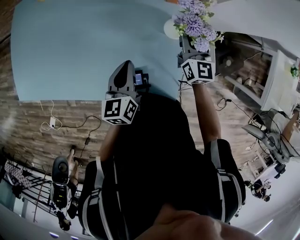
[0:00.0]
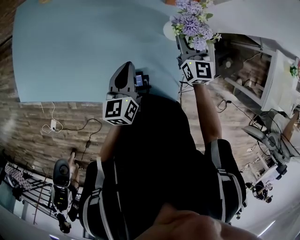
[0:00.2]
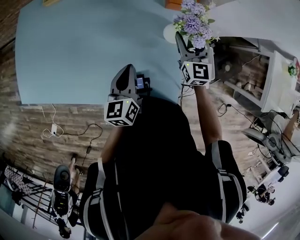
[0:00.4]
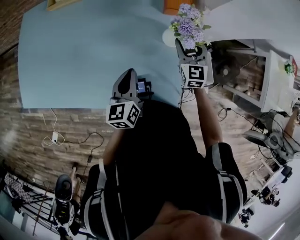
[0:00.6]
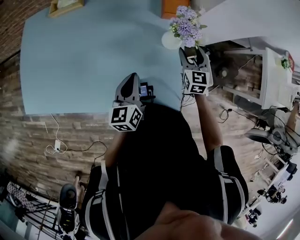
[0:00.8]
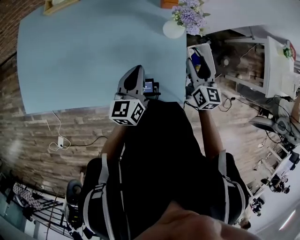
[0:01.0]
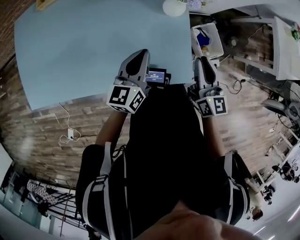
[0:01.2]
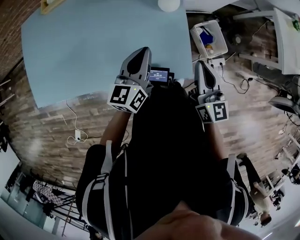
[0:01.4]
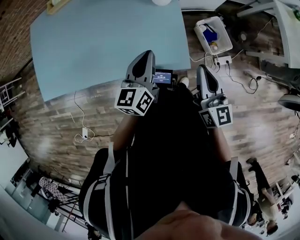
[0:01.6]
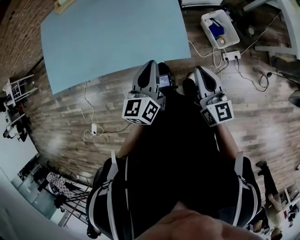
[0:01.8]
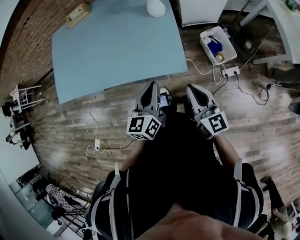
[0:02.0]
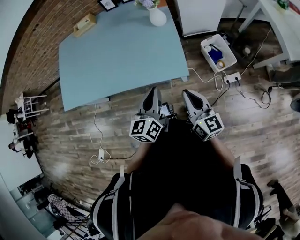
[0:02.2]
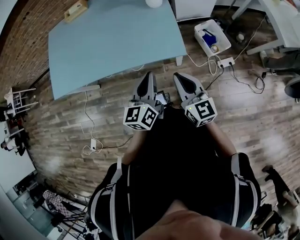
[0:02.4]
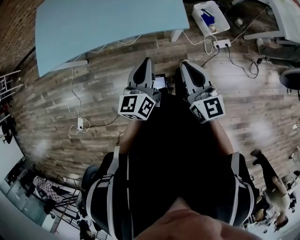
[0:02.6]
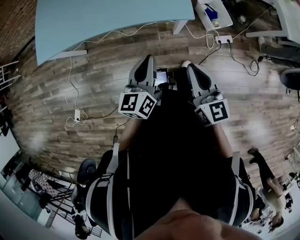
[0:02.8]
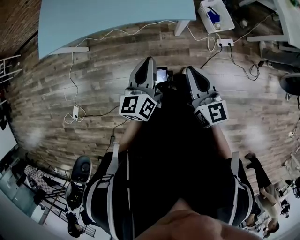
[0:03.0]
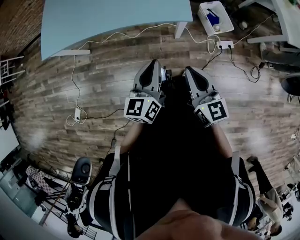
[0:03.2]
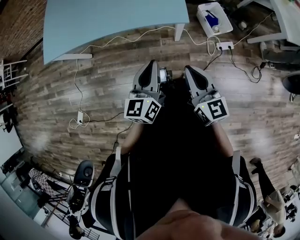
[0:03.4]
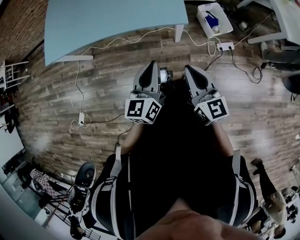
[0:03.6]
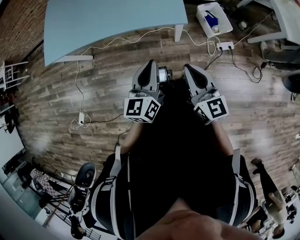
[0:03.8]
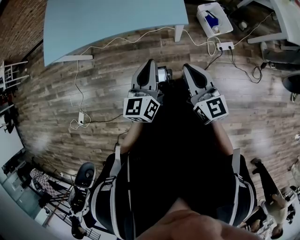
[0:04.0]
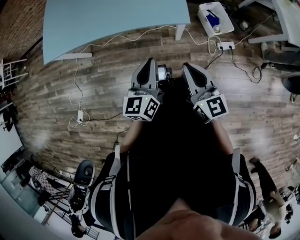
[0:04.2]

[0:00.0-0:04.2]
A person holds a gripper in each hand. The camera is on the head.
0.0 to 1.4 s: The left gripper heads backward, upward and to the right, covering about 15 cm, and rotates approximately 30 degrees, while the right gripper moves backward, some 30 cm, and closes.
1.4 to 2.8 s: The grippers both shift backward by about 40 cm.
2.8 to 4.2 s: The left gripper moves about 5 cm.

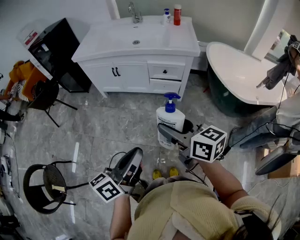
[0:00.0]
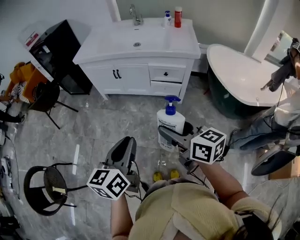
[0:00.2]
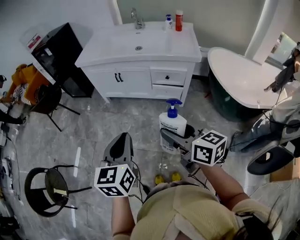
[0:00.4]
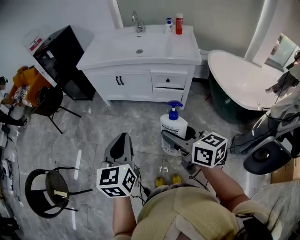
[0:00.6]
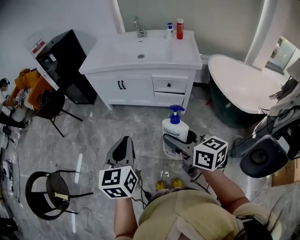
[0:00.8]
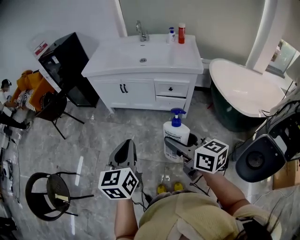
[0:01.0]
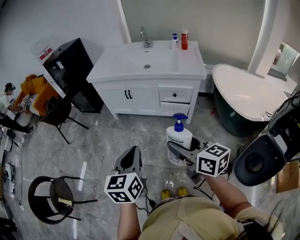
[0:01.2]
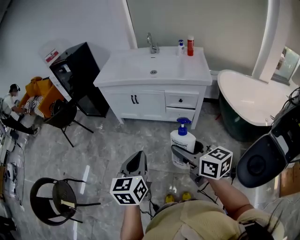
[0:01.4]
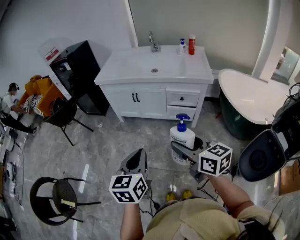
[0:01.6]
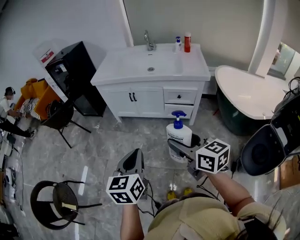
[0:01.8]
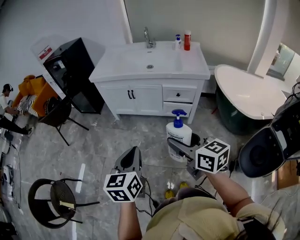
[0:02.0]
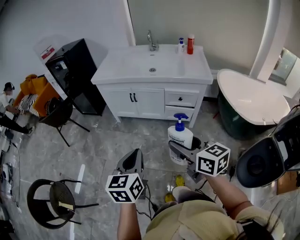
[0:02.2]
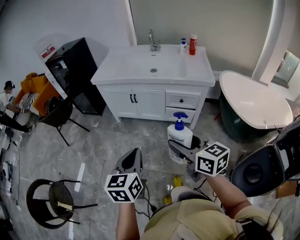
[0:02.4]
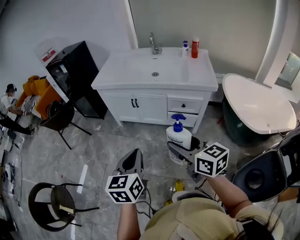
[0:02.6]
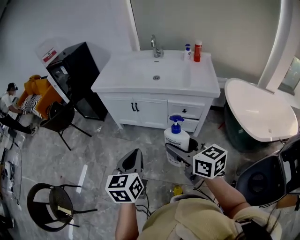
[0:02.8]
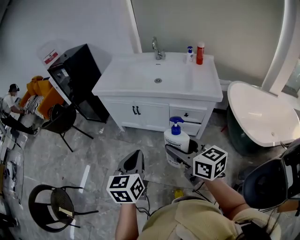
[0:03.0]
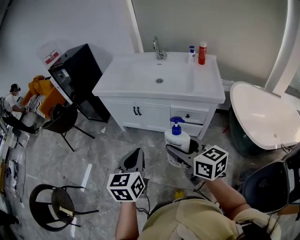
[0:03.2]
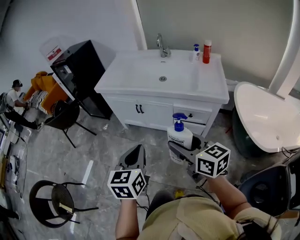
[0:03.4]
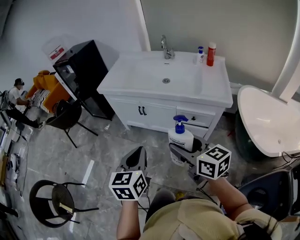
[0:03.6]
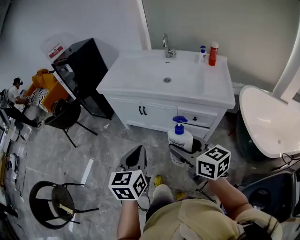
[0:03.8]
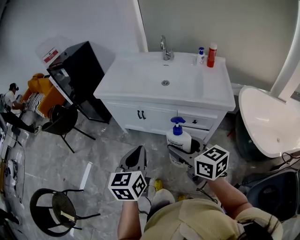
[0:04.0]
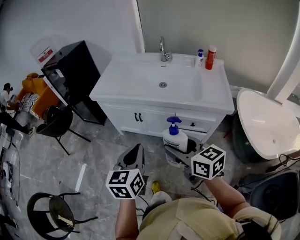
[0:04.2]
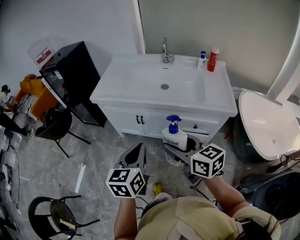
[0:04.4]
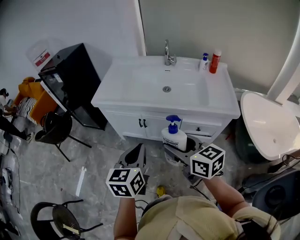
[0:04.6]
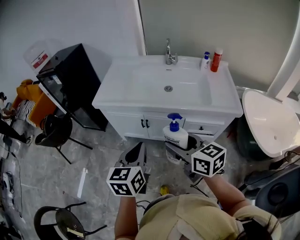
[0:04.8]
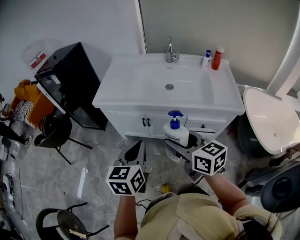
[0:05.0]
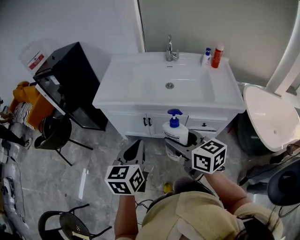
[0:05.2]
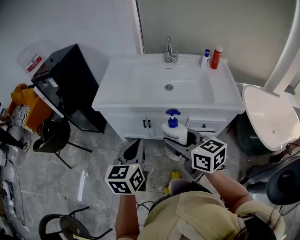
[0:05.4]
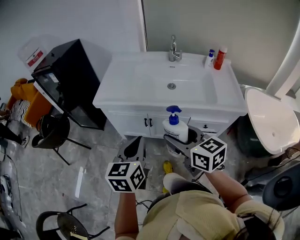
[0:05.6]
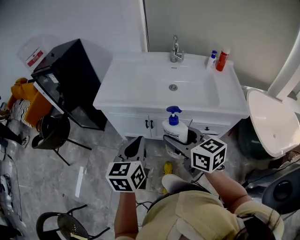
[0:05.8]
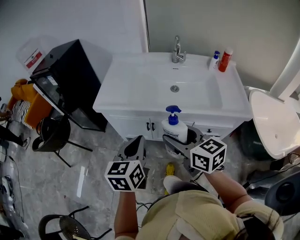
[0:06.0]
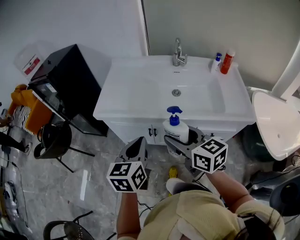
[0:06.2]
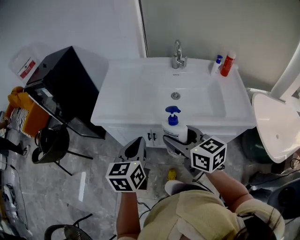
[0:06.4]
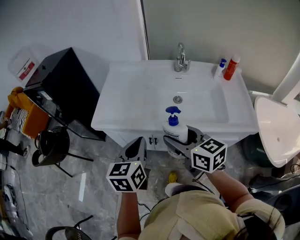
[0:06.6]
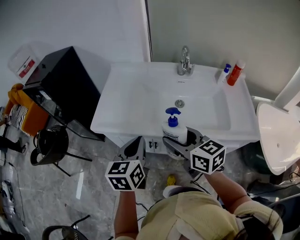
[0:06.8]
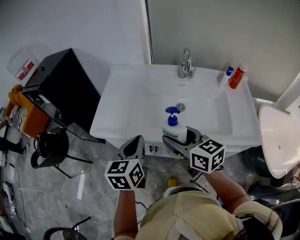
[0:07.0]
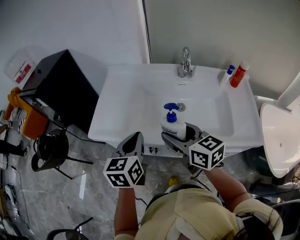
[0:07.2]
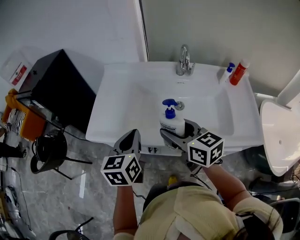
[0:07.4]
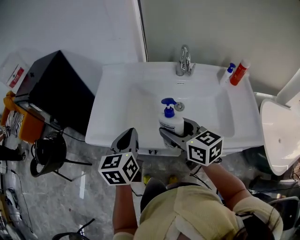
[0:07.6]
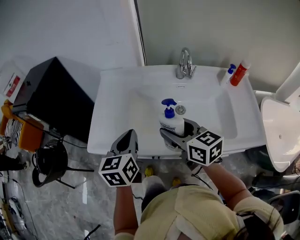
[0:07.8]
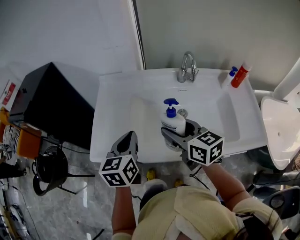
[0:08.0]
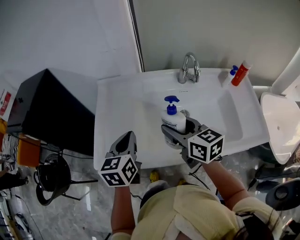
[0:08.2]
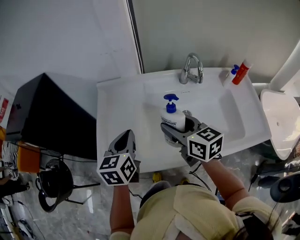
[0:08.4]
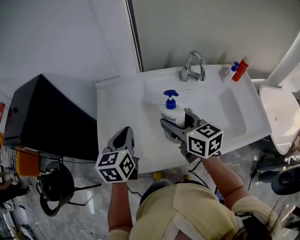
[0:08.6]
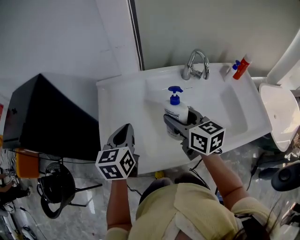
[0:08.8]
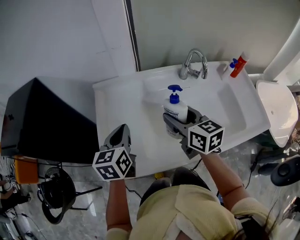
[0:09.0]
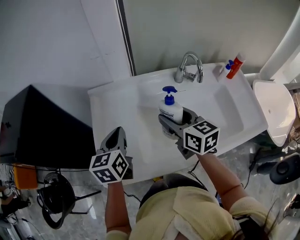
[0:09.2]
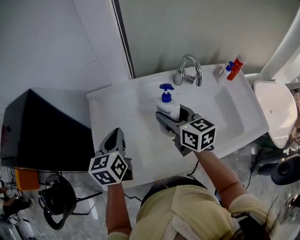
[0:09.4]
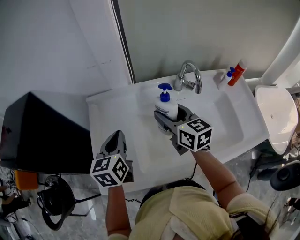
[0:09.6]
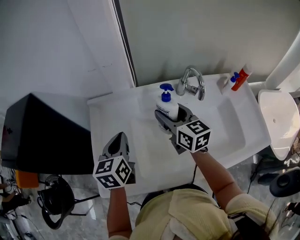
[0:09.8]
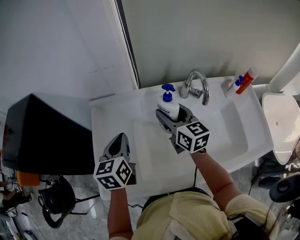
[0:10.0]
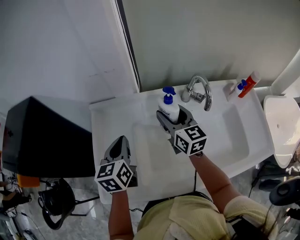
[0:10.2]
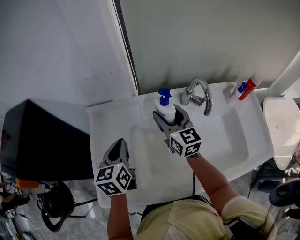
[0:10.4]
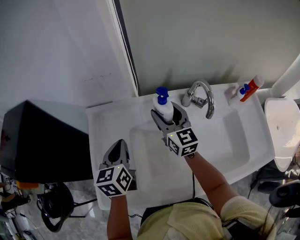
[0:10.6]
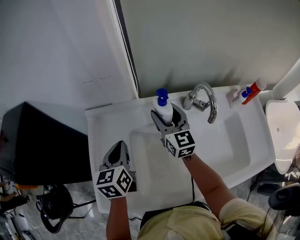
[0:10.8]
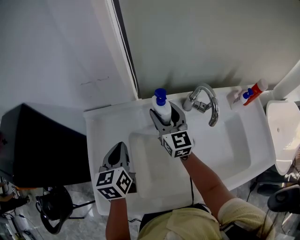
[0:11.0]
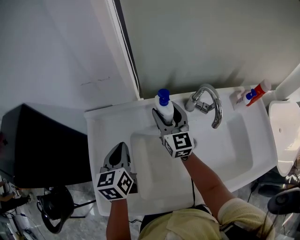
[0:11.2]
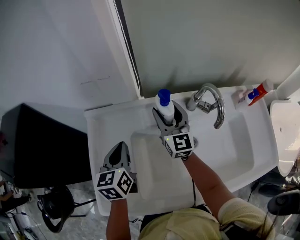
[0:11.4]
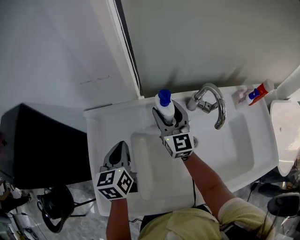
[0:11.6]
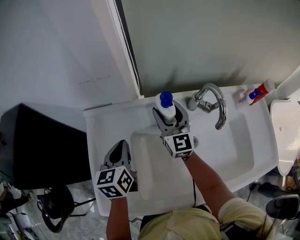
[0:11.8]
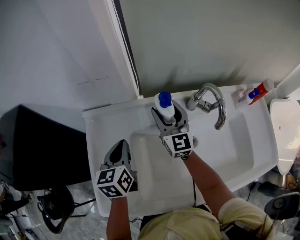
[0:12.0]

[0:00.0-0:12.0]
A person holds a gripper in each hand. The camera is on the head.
0.0 to 1.6 s: The left gripper travels forward and to the left by approximately 10 cm, and changes its angle by roughly 40 degrees, while the right gripper ends up approximately 5 cm from where it was.
1.6 to 3.0 s: The two grippers go approximately 15 cm forward.
3.0 to 4.4 s: Both grippers move forward, approximately 15 cm.
4.4 to 6.0 s: Both grippers move forward and to the left, some 15 cm.
6.0 to 7.6 s: The grippers both shift forward by roughly 25 cm.
7.6 to 9.0 s: The left gripper heads forward and to the left, covering some 20 cm, while the right gripper heads forward, covering about 15 cm, and rotates some 20 degrees.
9.0 to 10.4 s: The right gripper heads forward, covering roughly 15 cm, while the left gripper is displaced forward by about 10 cm.
10.4 to 12.0 s: The left gripper shifts by some 5 cm. Meanwhile the right gripper is displaced forward by about 5 cm.

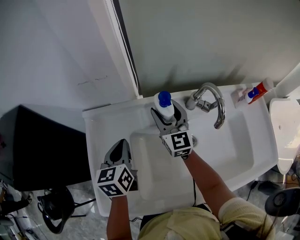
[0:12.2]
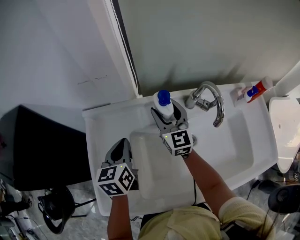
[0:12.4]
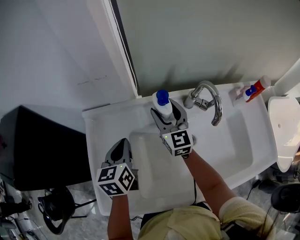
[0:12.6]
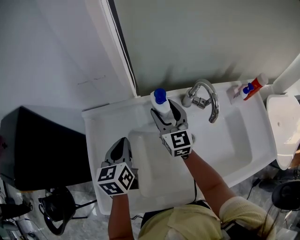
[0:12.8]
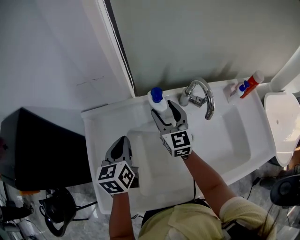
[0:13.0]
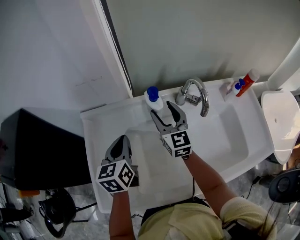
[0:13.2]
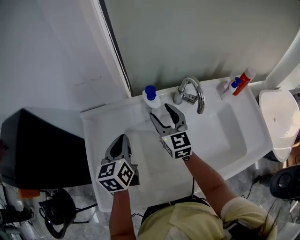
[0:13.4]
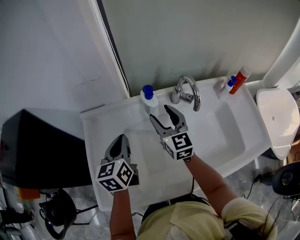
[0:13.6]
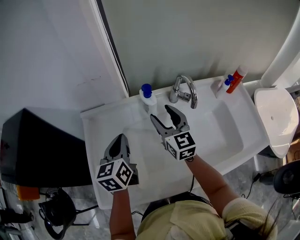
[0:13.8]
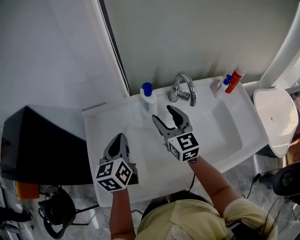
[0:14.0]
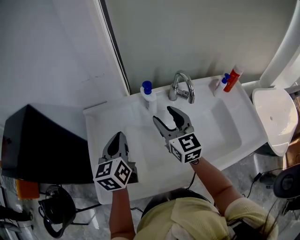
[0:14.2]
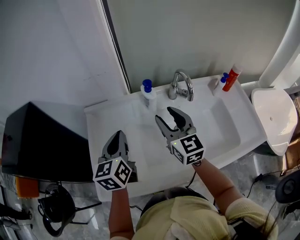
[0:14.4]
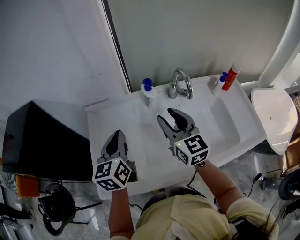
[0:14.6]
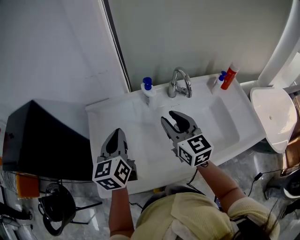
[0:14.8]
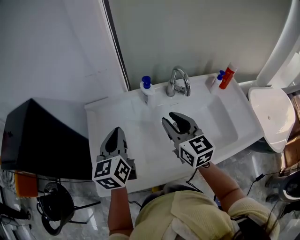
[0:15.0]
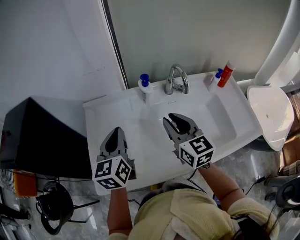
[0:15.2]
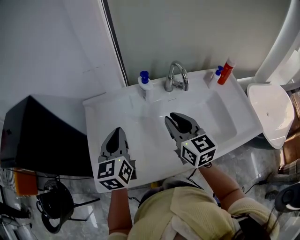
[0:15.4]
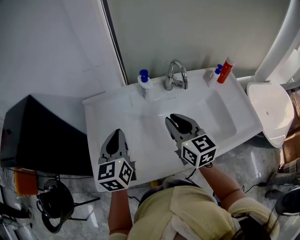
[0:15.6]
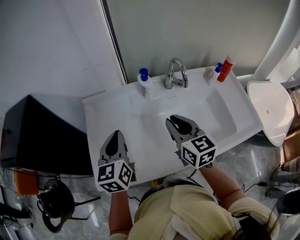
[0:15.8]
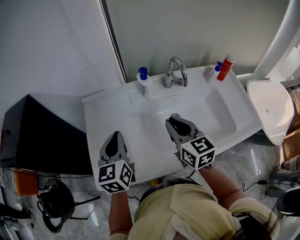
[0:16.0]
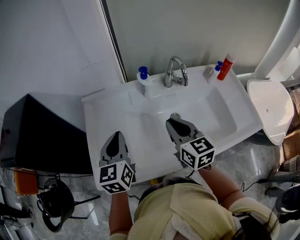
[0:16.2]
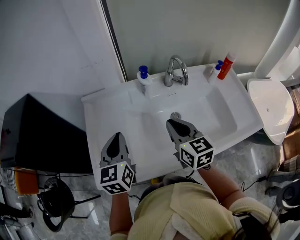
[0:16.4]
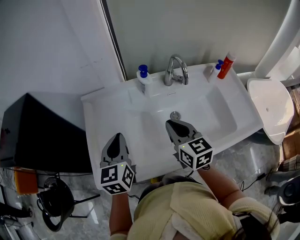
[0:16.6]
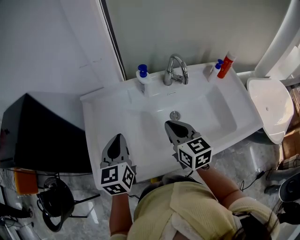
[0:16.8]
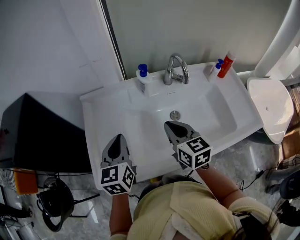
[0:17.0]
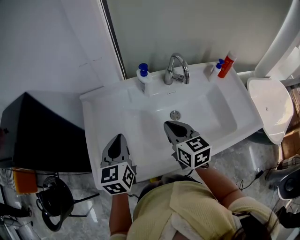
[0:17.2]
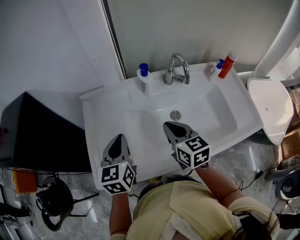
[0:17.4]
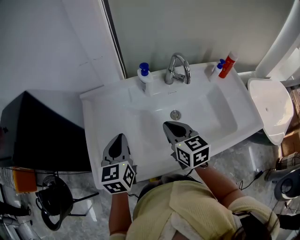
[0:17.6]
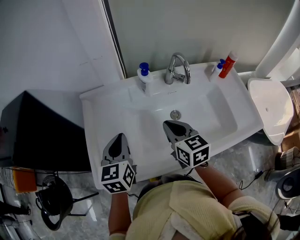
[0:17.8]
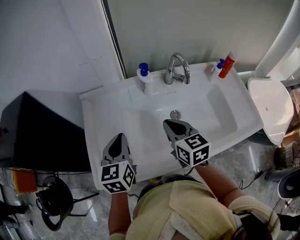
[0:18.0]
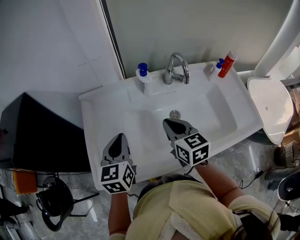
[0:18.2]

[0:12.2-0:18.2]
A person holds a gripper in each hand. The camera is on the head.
12.2 to 13.8 s: The left gripper moves upward, approximately 5 cm; the right gripper heads backward, covering some 10 cm.
13.8 to 15.2 s: The left gripper heads backward and upward, covering roughly 10 cm. Meanwhile the right gripper heads backward, covering some 10 cm, and closes its fingers.
15.2 to 16.6 s: The right gripper shifts by approximately 5 cm. The left gripper ends up approximately 5 cm from where it was.
16.6 to 18.2 s: There are only small adjustments of the grippers.

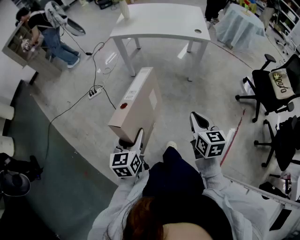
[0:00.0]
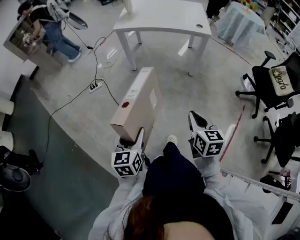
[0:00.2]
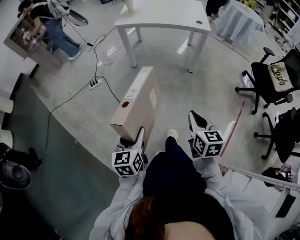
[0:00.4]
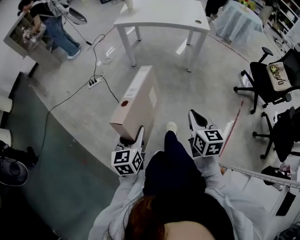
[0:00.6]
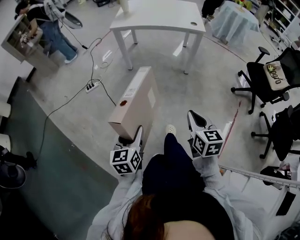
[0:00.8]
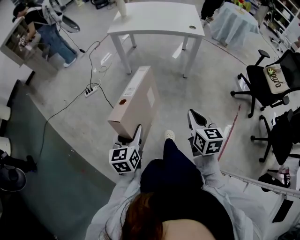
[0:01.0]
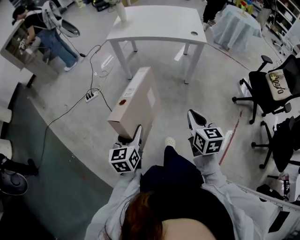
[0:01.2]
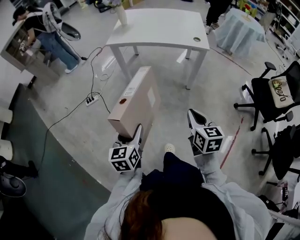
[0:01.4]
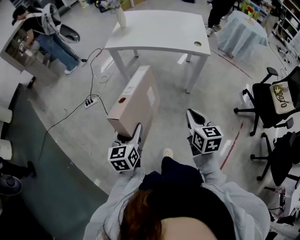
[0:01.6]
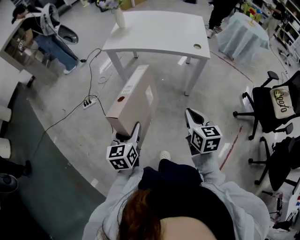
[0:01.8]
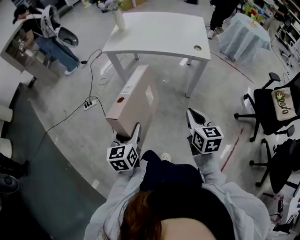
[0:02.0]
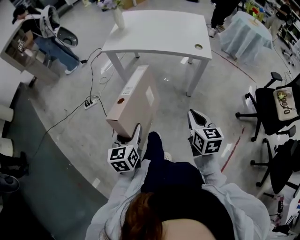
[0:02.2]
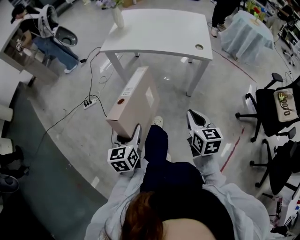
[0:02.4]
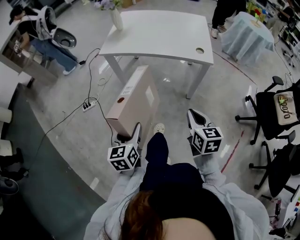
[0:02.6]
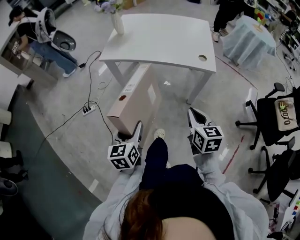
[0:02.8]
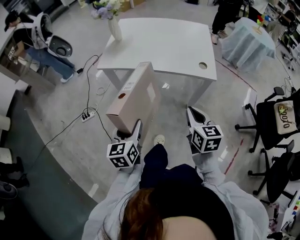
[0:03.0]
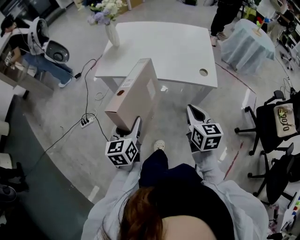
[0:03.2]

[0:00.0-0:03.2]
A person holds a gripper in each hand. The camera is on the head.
0.0 to 1.6 s: Both grippers travel together forward, approximately 15 cm.
1.6 to 3.2 s: Both grippers travel together forward, approximately 30 cm.
